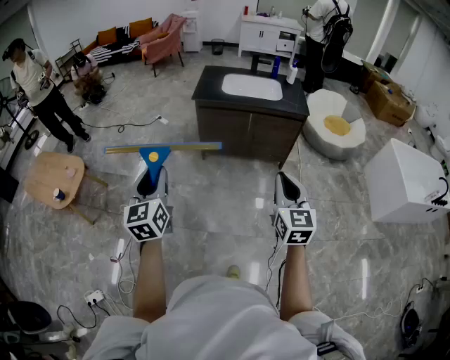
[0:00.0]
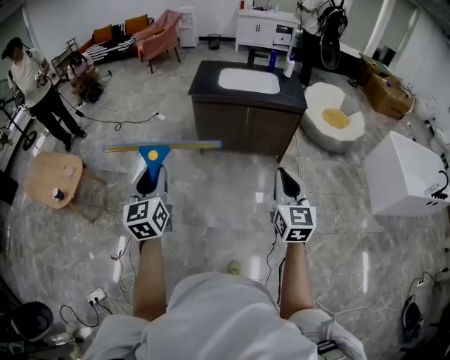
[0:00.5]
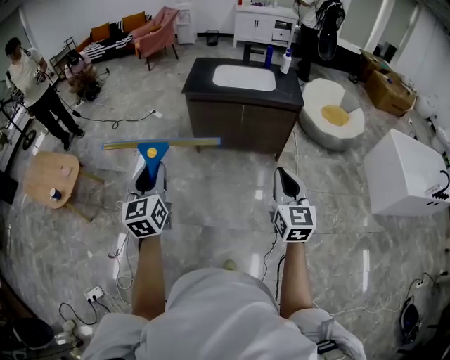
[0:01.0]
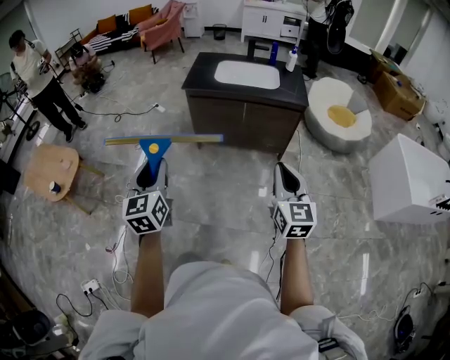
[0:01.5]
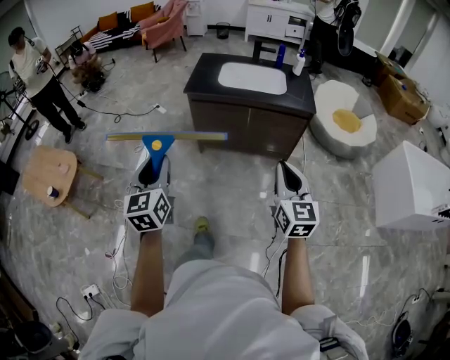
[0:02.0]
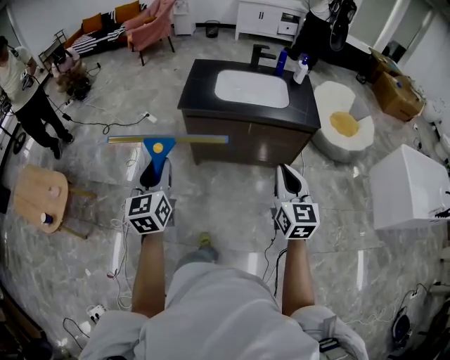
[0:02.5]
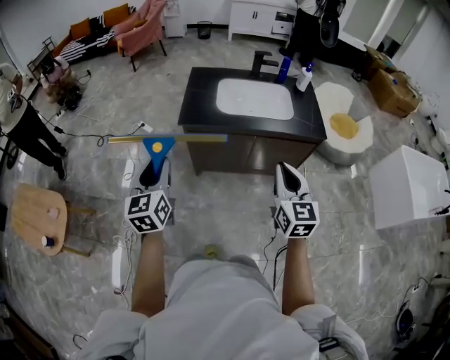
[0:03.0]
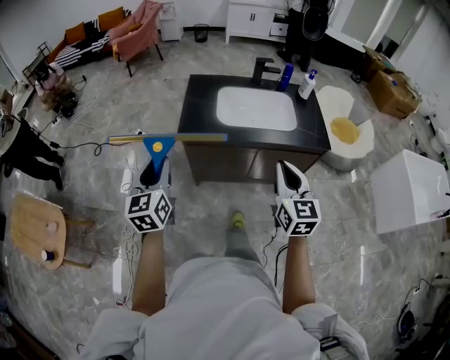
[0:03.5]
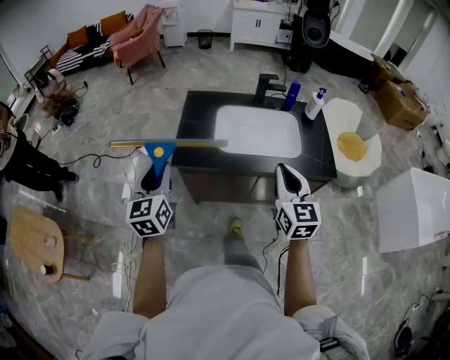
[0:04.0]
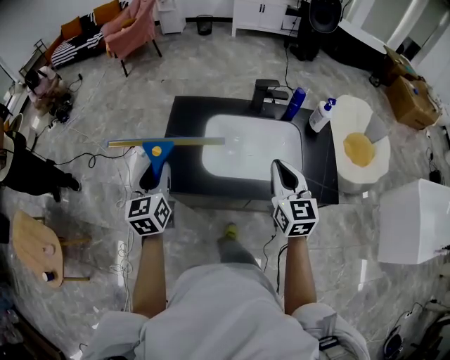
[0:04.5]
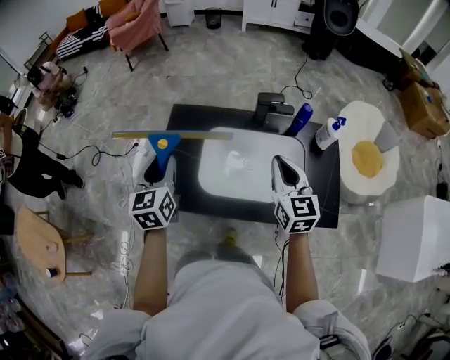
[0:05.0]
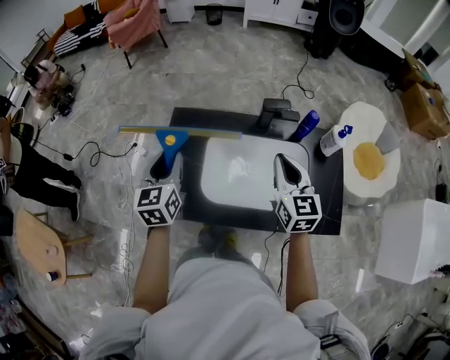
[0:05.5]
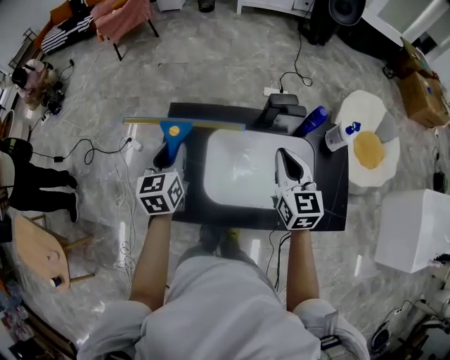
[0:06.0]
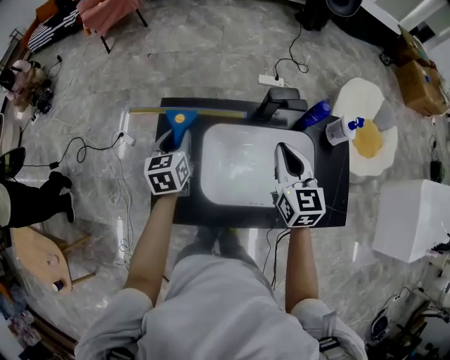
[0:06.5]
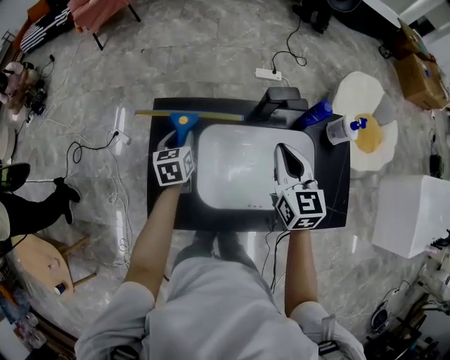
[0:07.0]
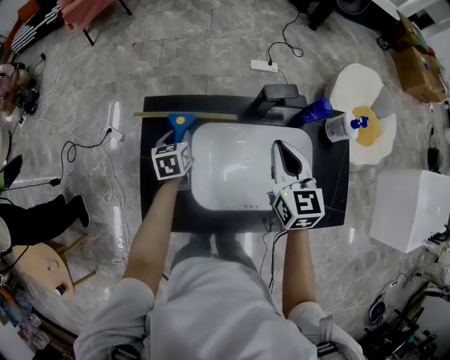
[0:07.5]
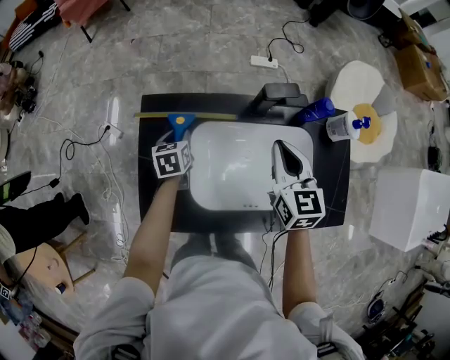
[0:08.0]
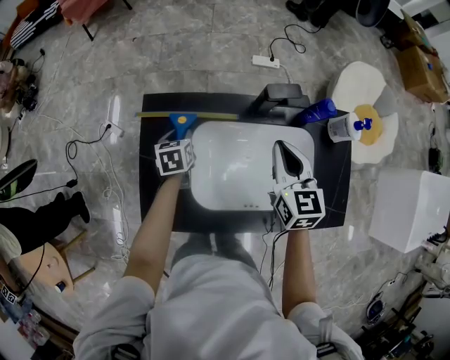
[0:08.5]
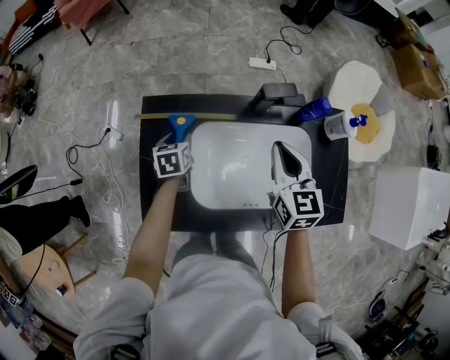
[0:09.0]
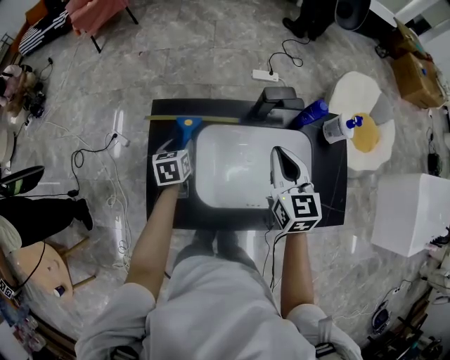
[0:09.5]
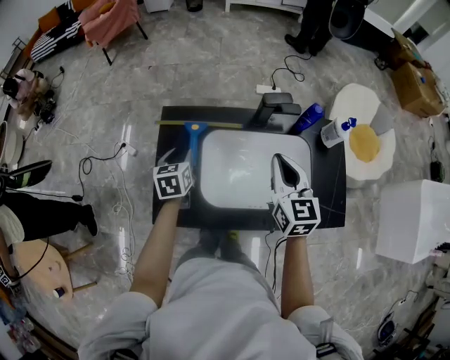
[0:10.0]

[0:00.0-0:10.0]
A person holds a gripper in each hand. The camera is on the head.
0:00.0 to 0:02.0: Both grippers travel together forward and to the right, about 20 cm.
0:02.0 to 0:04.0: Both grippers are carried forward, approximately 60 cm.
0:04.0 to 0:06.0: The pair of grippers is taken forward, about 50 cm.
0:06.0 to 0:08.0: The left gripper is displaced downward and forward by about 25 cm, and changes its angle by approximately 30 degrees, while the right gripper is displaced forward and downward by some 10 cm.
0:08.0 to 0:10.0: The right gripper goes about 10 cm backward and upward; the left gripper moves upward and backward, approximately 15 cm.

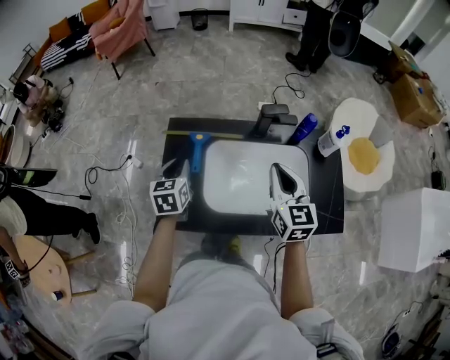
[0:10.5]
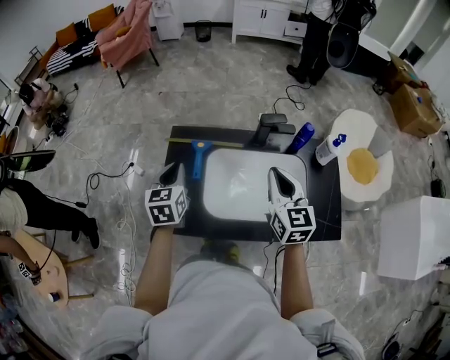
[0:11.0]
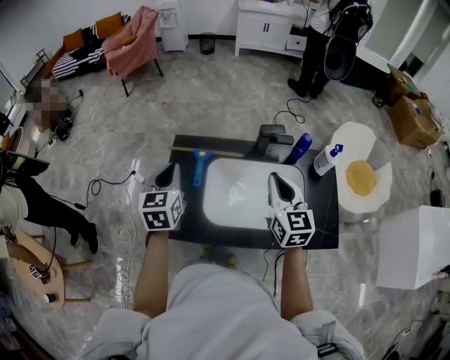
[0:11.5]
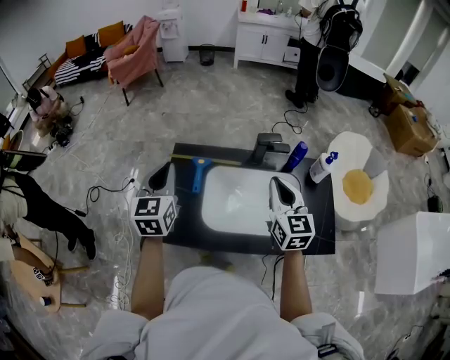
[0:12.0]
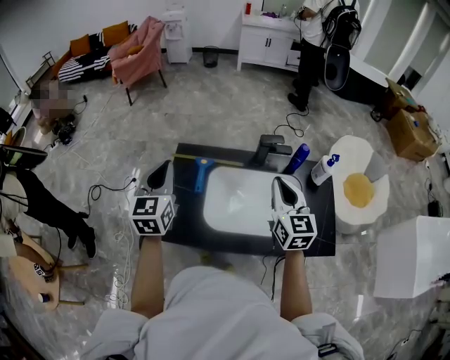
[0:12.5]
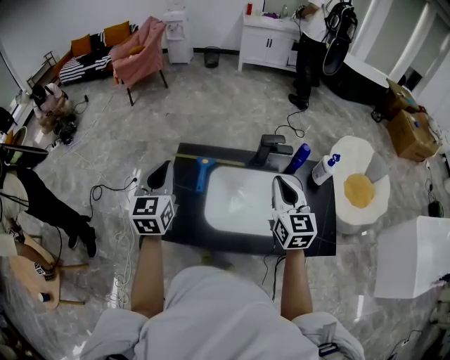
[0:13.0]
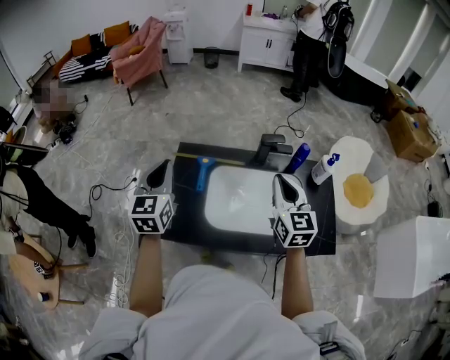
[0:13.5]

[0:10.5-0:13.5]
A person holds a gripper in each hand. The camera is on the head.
0:10.5 to 0:12.0: The right gripper goes approximately 5 cm upward, while the left gripper moves upward, about 15 cm, and turns by approximately 20 degrees.
0:12.0 to 0:13.5: There are only small adjustments of the grippers.

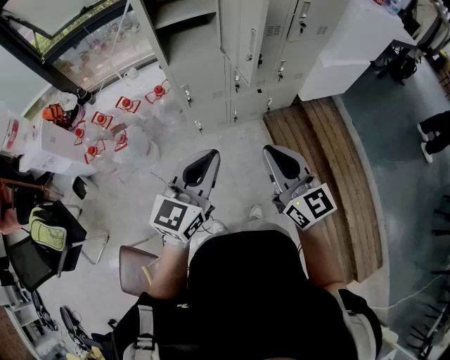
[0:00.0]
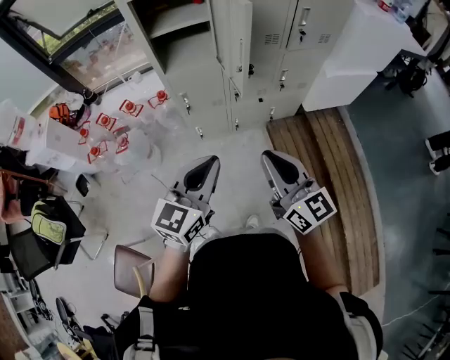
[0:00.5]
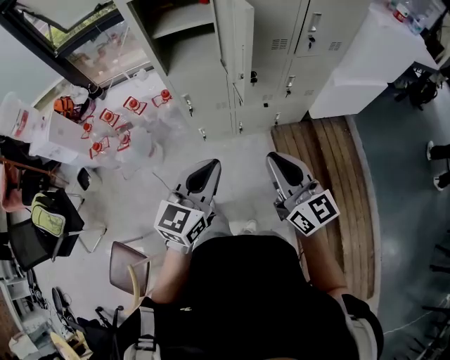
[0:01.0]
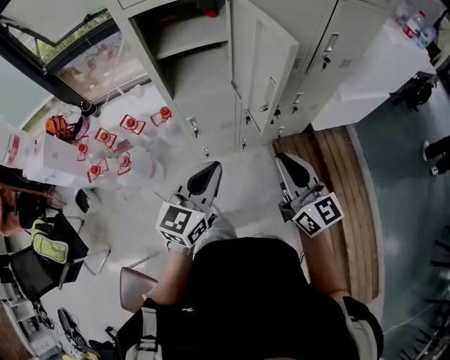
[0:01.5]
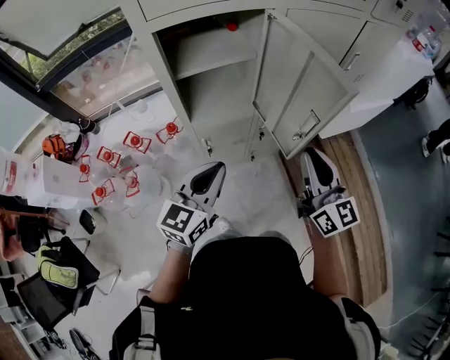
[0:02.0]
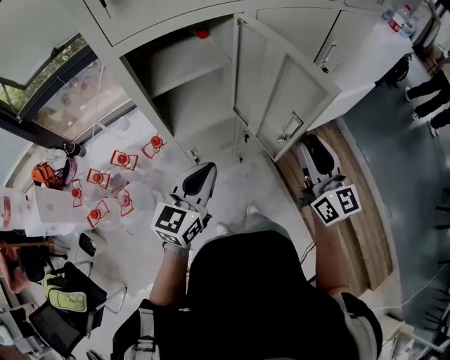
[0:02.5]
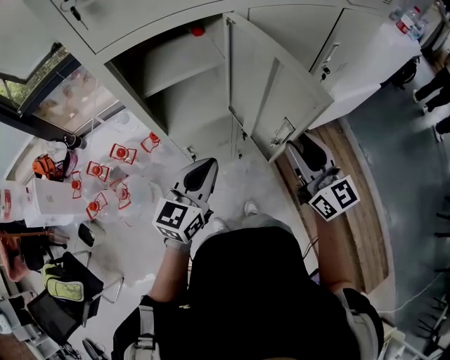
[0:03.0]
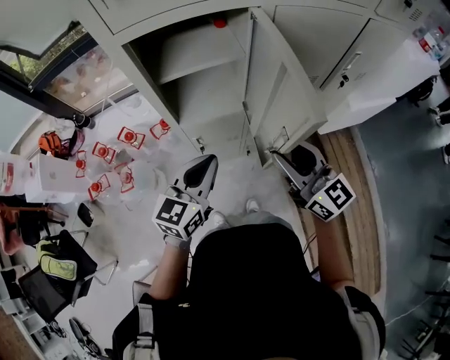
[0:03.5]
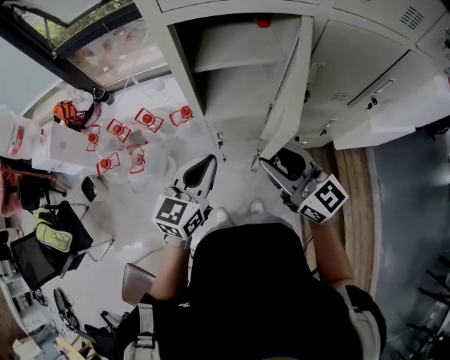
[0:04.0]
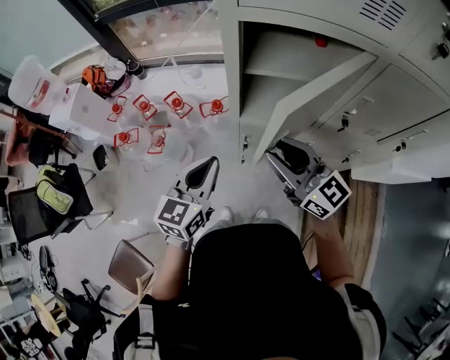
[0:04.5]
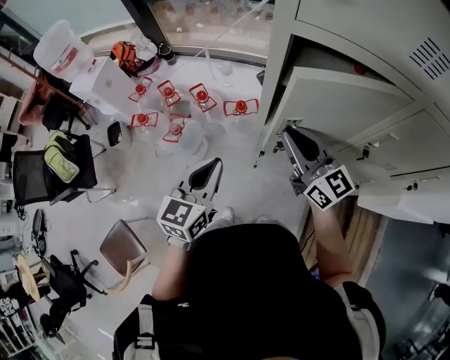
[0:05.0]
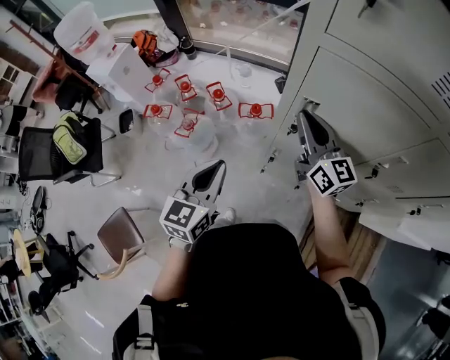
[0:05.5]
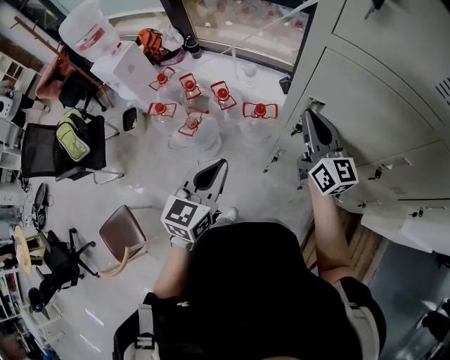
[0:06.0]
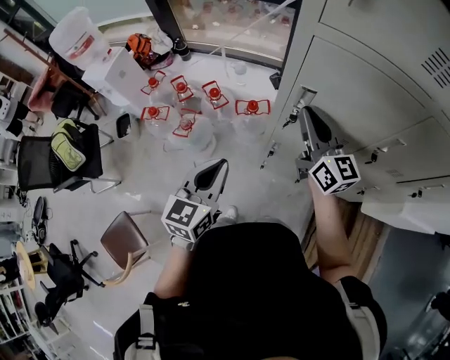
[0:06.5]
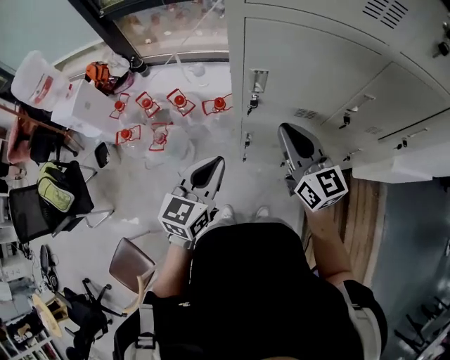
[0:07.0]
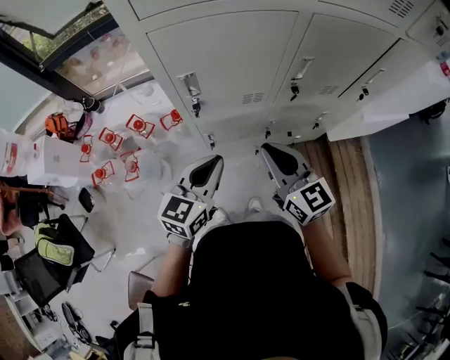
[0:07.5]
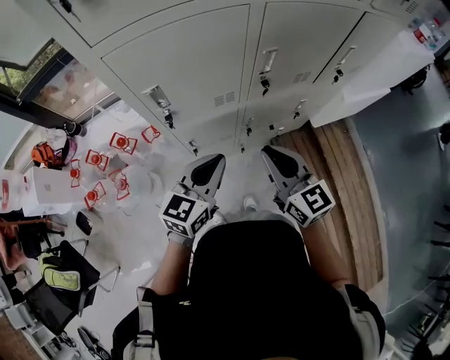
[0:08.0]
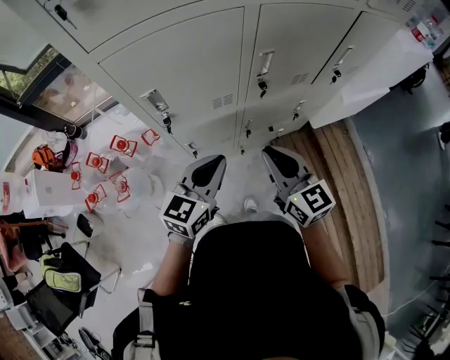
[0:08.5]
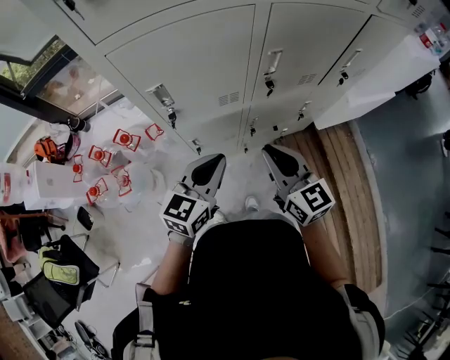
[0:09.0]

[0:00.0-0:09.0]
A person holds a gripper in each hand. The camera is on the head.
0:00.0 to 0:02.0: The grippers both shift forward by approximately 25 cm.
0:02.0 to 0:04.5: The left gripper shifts by approximately 10 cm, and rotates roughly 30 degrees, while the right gripper shifts by approximately 20 cm, swivels about 50 degrees, and opens its fingers.
0:04.5 to 0:07.0: The right gripper goes forward and returns, roughly 15 cm each way, and closes its fingers.
0:07.0 to 0:09.0: The right gripper moves about 15 cm, and swivels roughly 20 degrees; the left gripper moves some 15 cm, and rotates some 30 degrees.

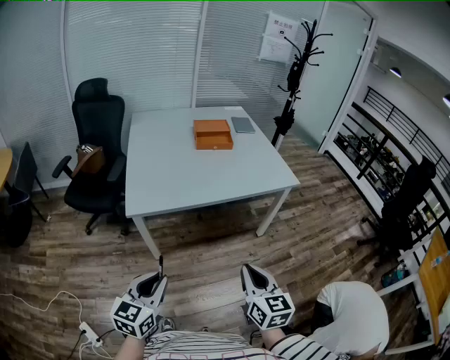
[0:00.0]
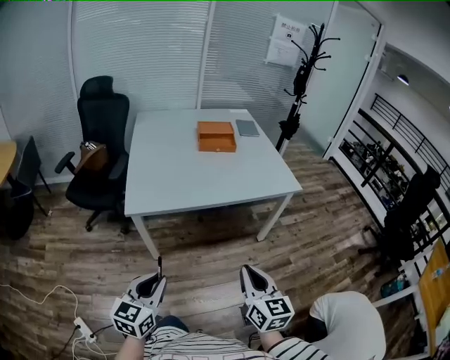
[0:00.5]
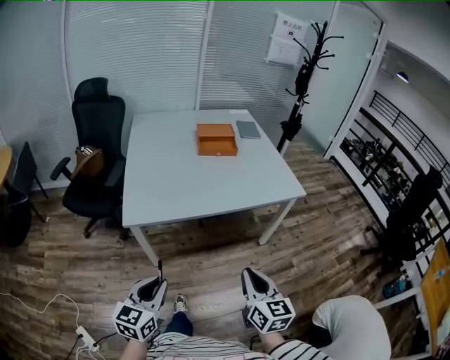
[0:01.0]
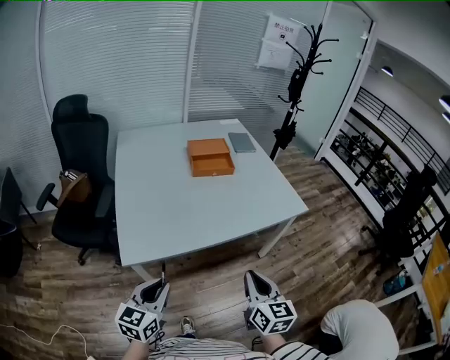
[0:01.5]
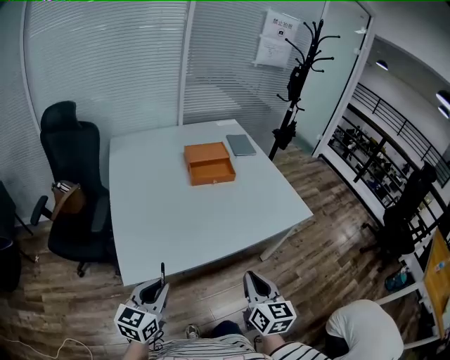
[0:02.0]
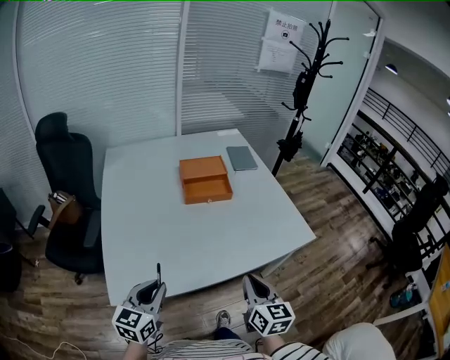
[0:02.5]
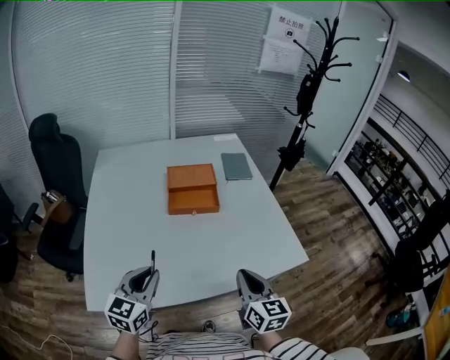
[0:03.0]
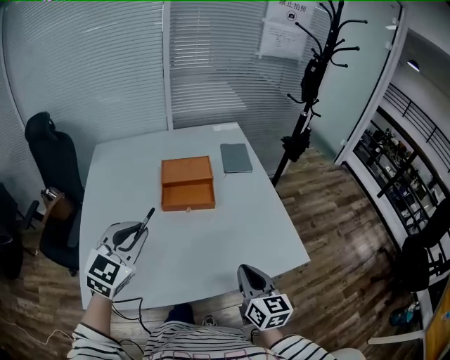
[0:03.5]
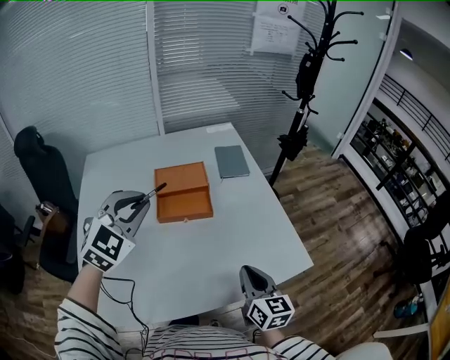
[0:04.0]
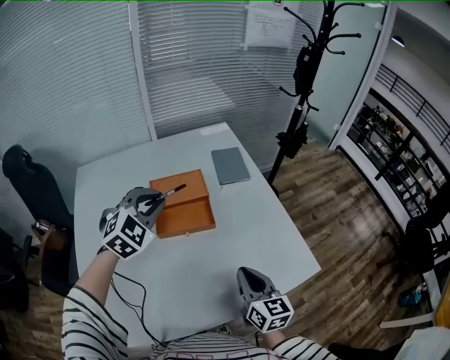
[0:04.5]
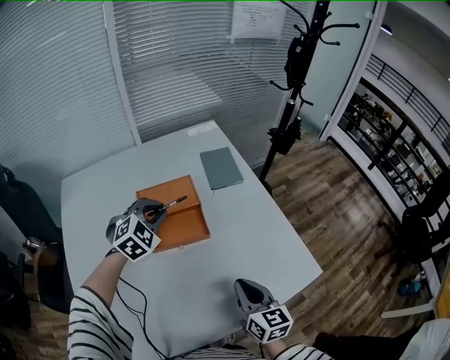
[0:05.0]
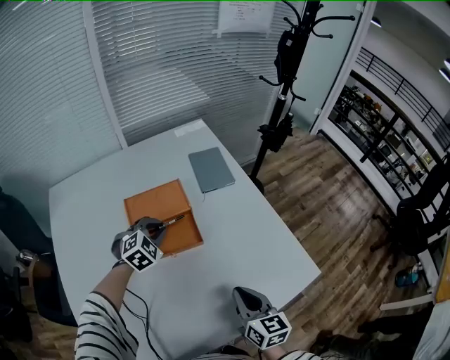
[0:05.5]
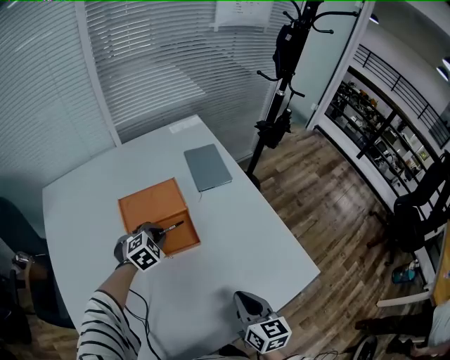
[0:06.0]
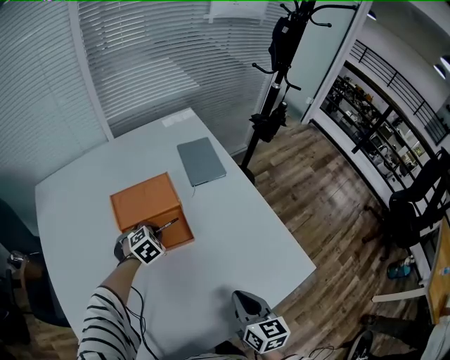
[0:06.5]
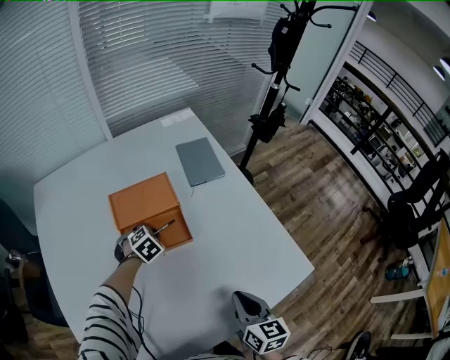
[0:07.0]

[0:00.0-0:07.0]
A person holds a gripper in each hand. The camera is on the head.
0:00.0 to 0:02.0: The grippers both shift forward by roughly 30 cm.
0:02.0 to 0:03.5: The grippers both shift forward and to the right by about 35 cm. The left gripper turns by about 30 degrees.
0:03.5 to 0:05.0: The right gripper shifts about 10 cm forward; the left gripper shifts some 30 cm forward, and rotates about 30 degrees.
0:05.0 to 0:07.0: The left gripper is displaced downward by roughly 20 cm, and swivels about 30 degrees; the right gripper changes place by about 5 cm.
